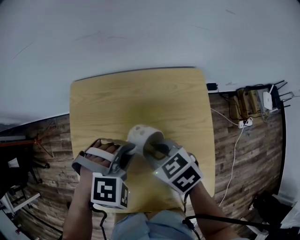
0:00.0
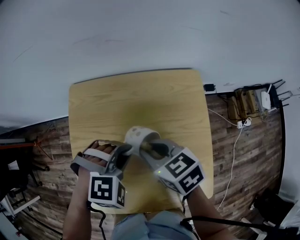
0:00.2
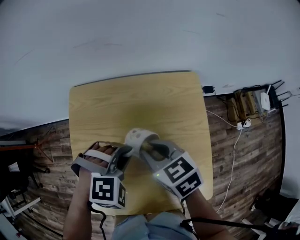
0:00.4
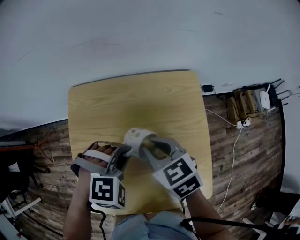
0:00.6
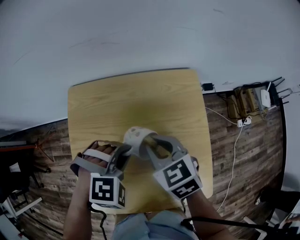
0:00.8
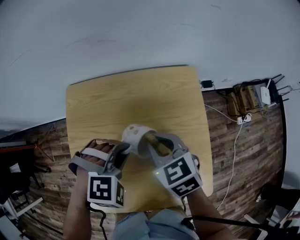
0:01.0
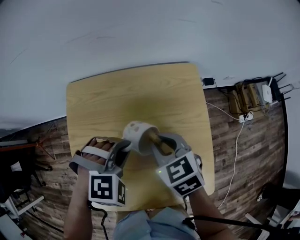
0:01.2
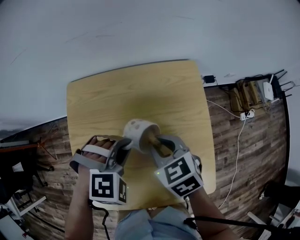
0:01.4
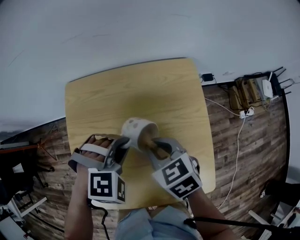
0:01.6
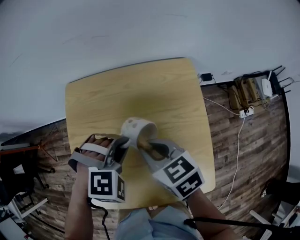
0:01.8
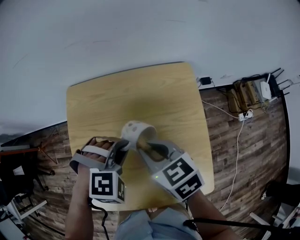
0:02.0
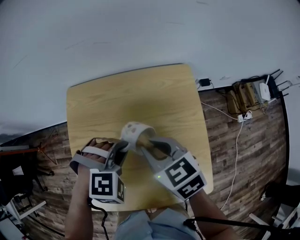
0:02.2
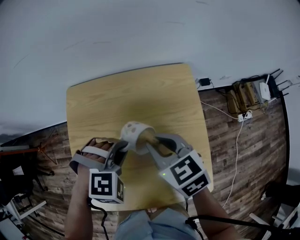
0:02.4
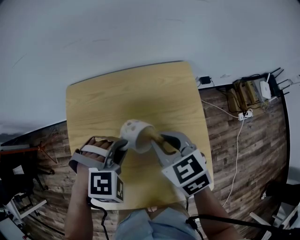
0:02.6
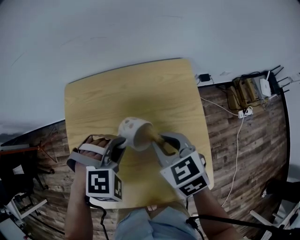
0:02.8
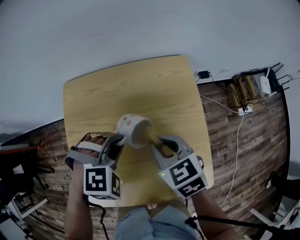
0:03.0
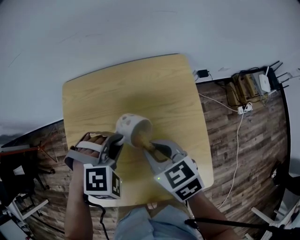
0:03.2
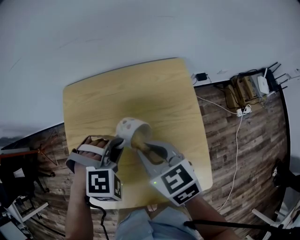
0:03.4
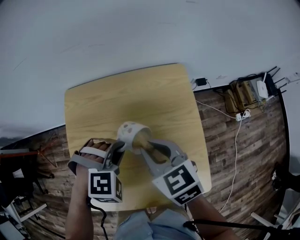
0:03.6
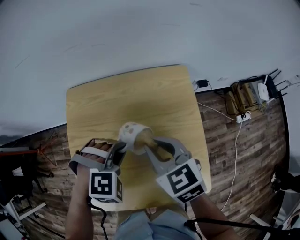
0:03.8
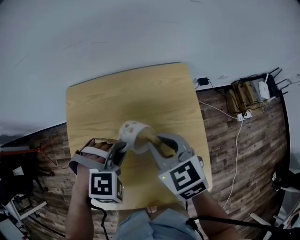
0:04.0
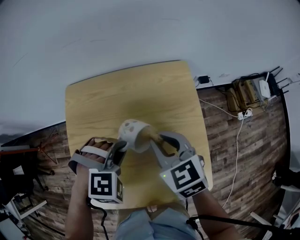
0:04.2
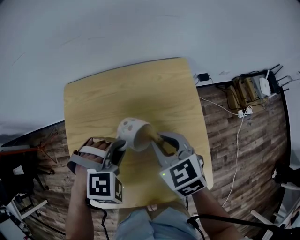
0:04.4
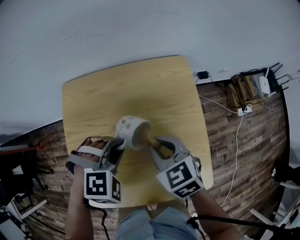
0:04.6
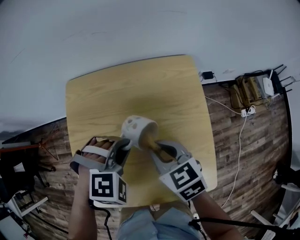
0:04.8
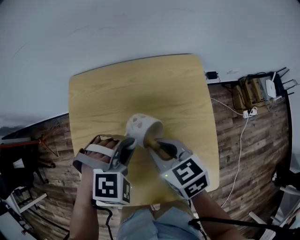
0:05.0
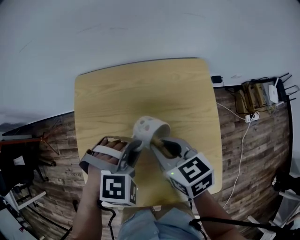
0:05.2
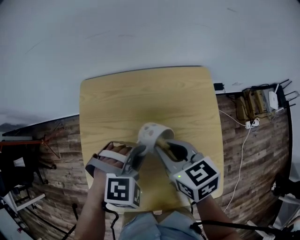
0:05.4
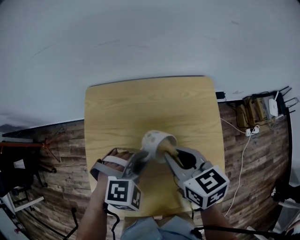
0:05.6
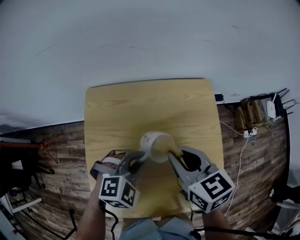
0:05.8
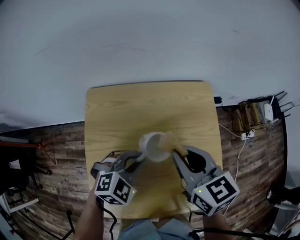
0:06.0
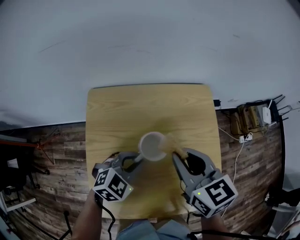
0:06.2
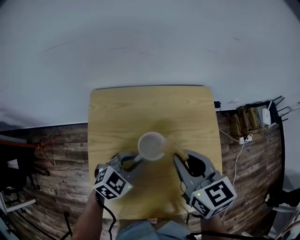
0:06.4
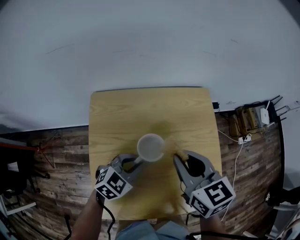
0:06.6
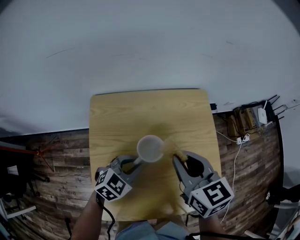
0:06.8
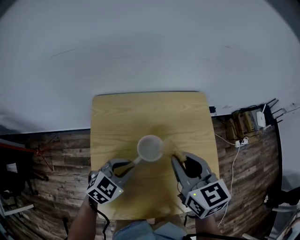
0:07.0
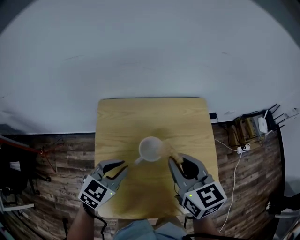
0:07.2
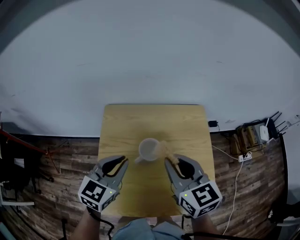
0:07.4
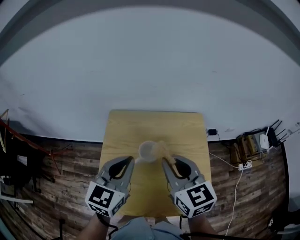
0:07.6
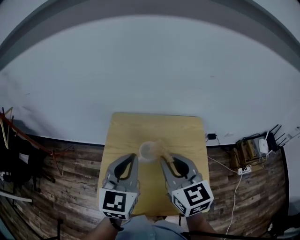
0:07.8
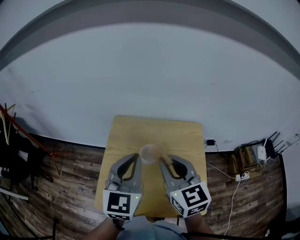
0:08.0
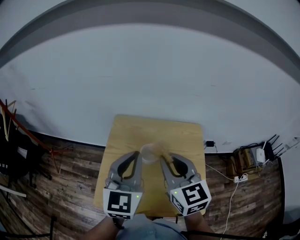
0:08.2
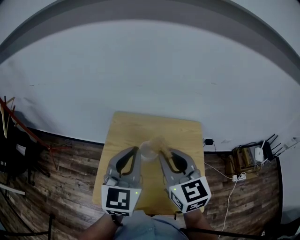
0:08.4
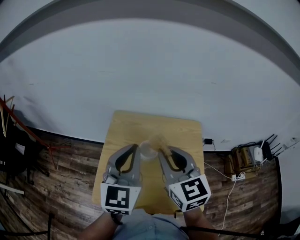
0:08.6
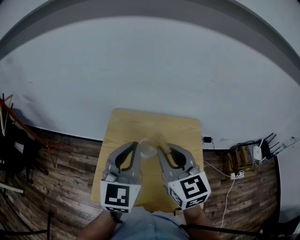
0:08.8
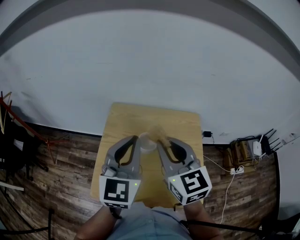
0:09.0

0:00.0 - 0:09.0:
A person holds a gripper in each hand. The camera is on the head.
0:00.0 - 0:01.6: The grippers stay close to where they were, moving slightly.
0:01.6 - 0:03.0: There are only small adjustments of the grippers.
0:03.0 - 0:04.4: The grippers stay close to where they were, moving slightly.
0:04.4 - 0:06.0: The left gripper changes its angle by roughly 30 degrees. The right gripper heads upward, covering some 10 cm.
0:06.0 - 0:07.6: The right gripper shifts roughly 10 cm upward and backward; the left gripper travels upward by some 20 cm, and points its fingers approximately 30 degrees further upward.
0:07.6 - 0:09.0: The left gripper heads upward, covering some 10 cm. Meanwhile the right gripper heads upward, covering approximately 5 cm.

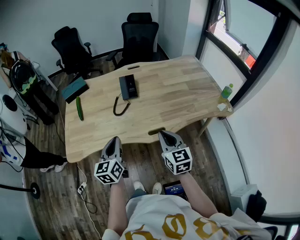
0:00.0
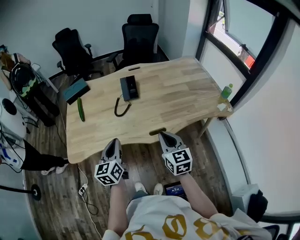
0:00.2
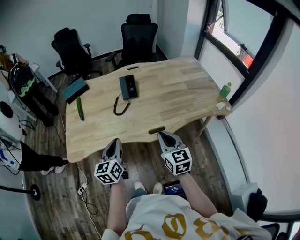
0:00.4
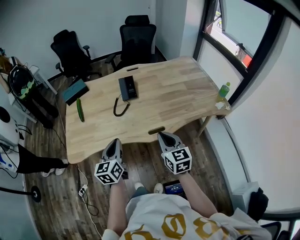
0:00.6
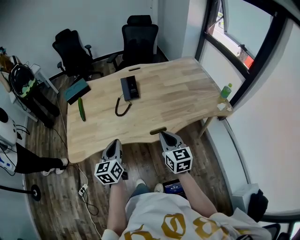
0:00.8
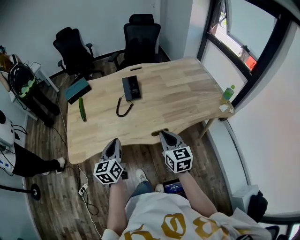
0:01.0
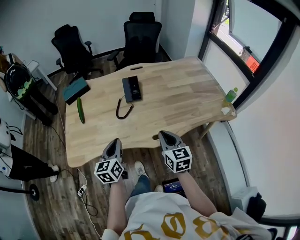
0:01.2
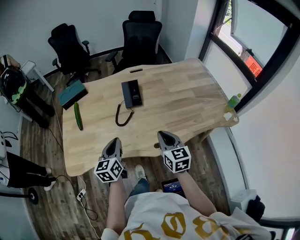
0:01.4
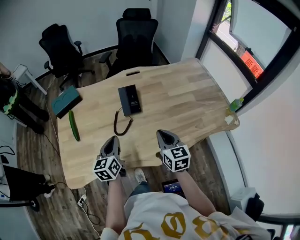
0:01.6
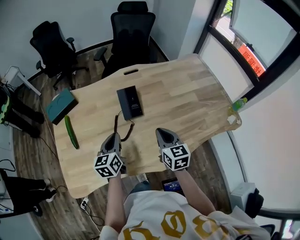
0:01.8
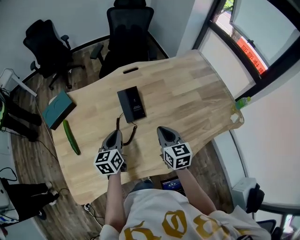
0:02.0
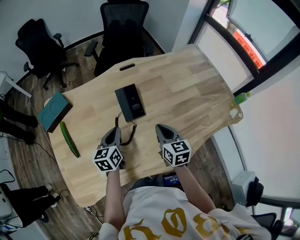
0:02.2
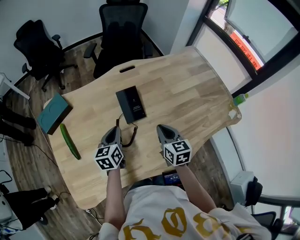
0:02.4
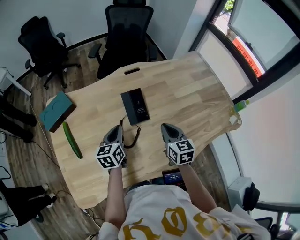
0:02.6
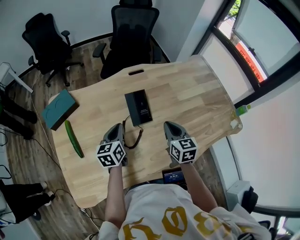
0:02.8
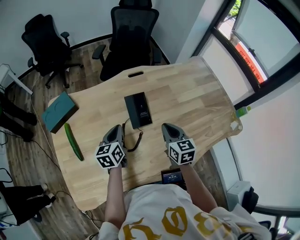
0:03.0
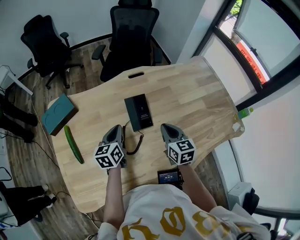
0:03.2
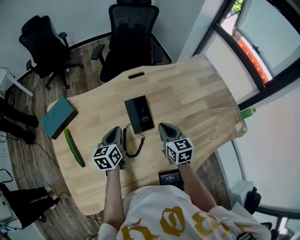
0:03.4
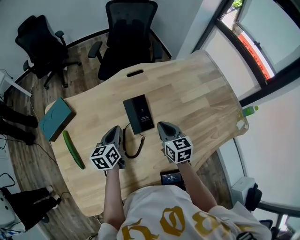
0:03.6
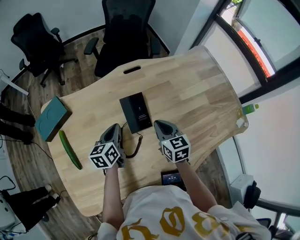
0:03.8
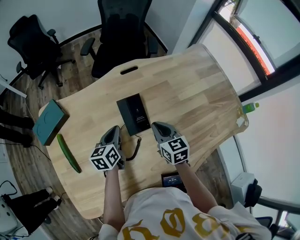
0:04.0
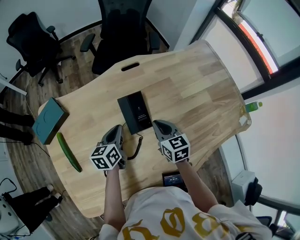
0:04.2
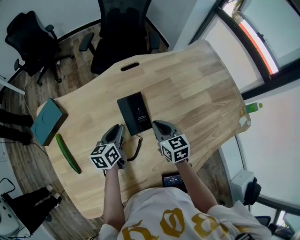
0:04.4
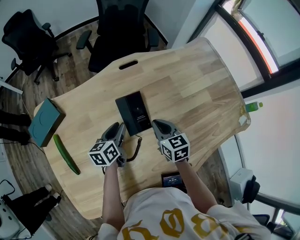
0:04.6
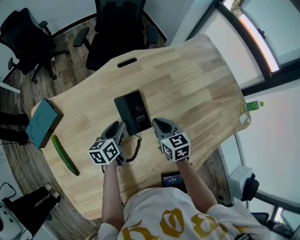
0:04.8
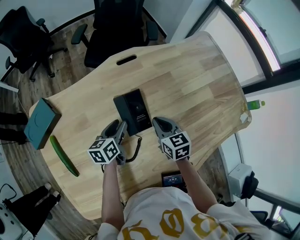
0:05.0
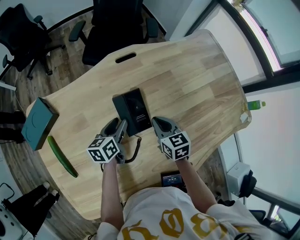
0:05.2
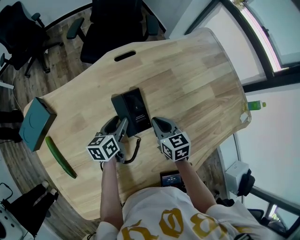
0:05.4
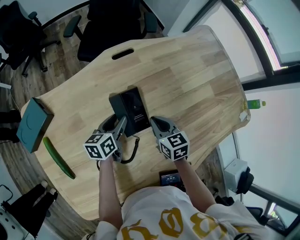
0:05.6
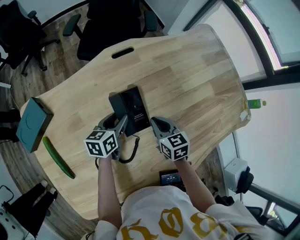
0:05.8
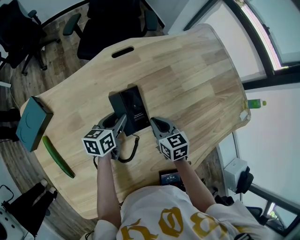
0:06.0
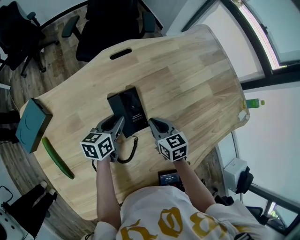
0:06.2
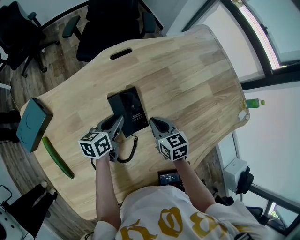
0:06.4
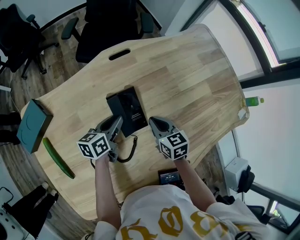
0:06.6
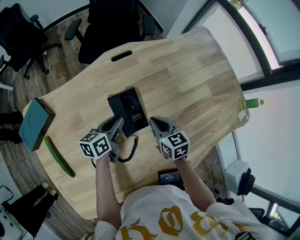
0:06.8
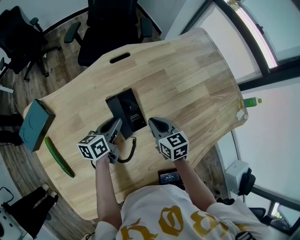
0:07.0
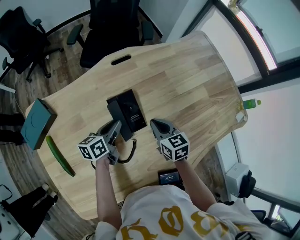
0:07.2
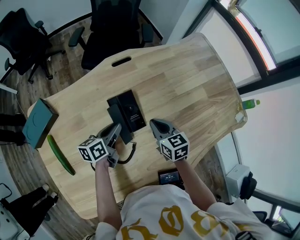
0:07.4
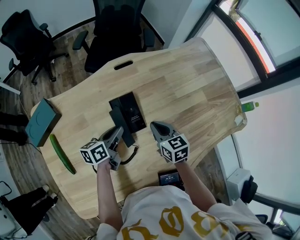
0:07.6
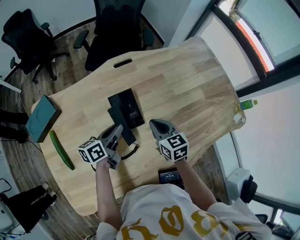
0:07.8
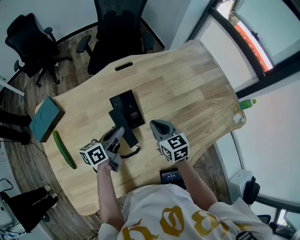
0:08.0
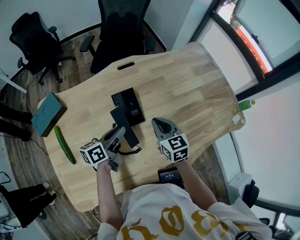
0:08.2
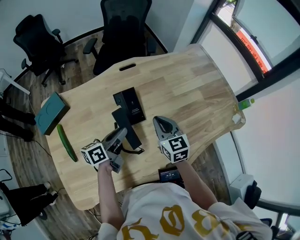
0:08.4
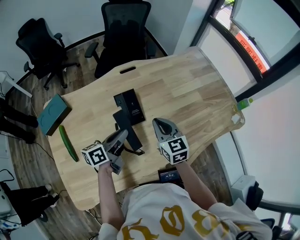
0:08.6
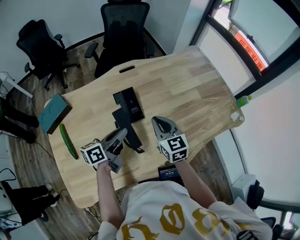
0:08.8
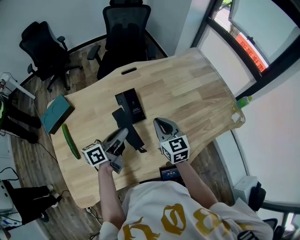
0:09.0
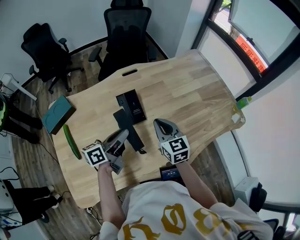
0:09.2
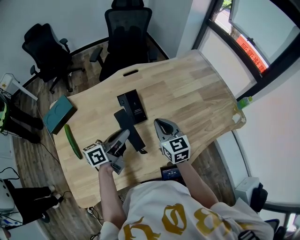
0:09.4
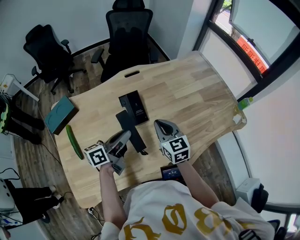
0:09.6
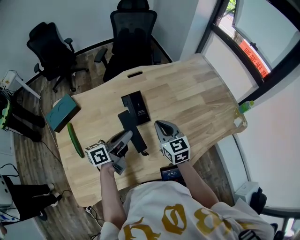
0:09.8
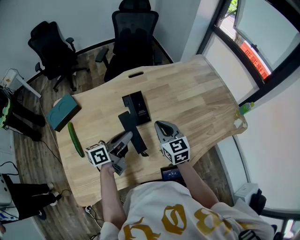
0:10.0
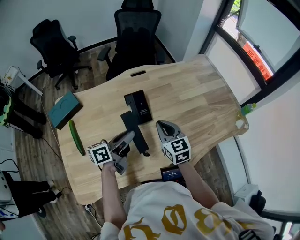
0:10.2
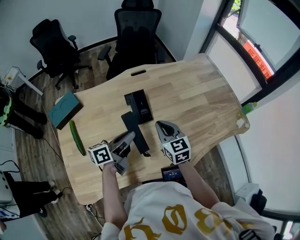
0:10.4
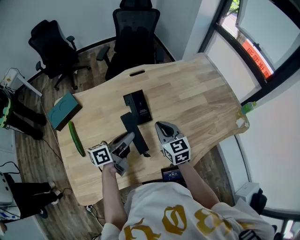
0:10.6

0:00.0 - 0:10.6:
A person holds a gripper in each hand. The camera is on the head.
0:00.0 - 0:01.6: The grippers both shift forward by roughly 15 cm.
0:01.6 - 0:03.0: Both grippers travel together forward, roughly 15 cm.
0:03.0 - 0:04.6: Both grippers travel together downward and forward, approximately 10 cm. The left gripper opens up.
0:04.6 - 0:06.0: The left gripper shifts by approximately 5 cm. The right gripper shifts approximately 5 cm downward.
0:06.0 - 0:07.6: The right gripper heads upward, covering some 5 cm, while the left gripper is displaced backward by roughly 5 cm.
0:07.6 - 0:09.0: Both grippers move upward and backward, about 15 cm.
0:09.0 - 0:10.6: There are only small adjustments of the grippers.

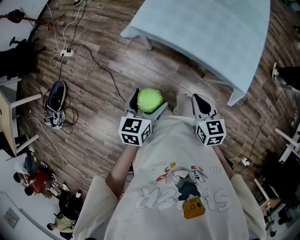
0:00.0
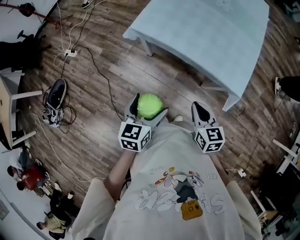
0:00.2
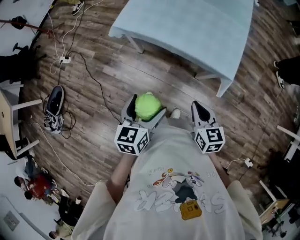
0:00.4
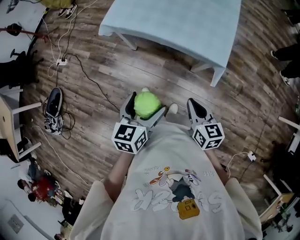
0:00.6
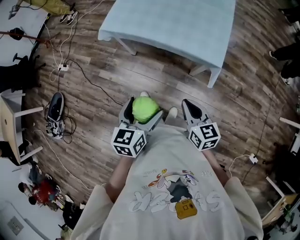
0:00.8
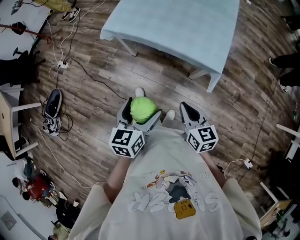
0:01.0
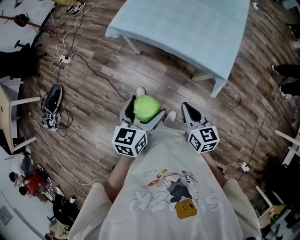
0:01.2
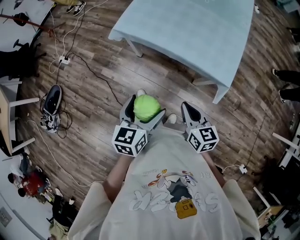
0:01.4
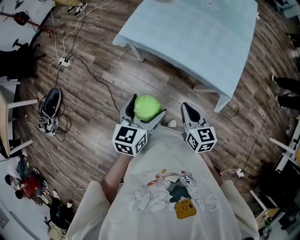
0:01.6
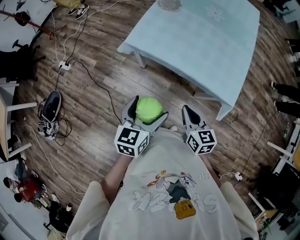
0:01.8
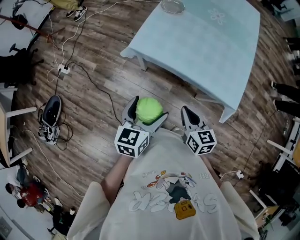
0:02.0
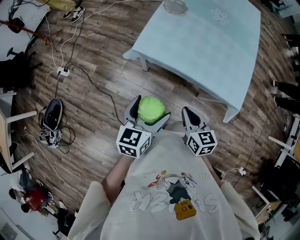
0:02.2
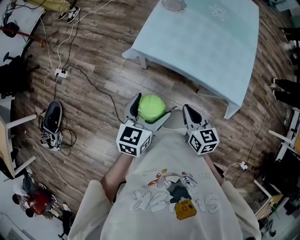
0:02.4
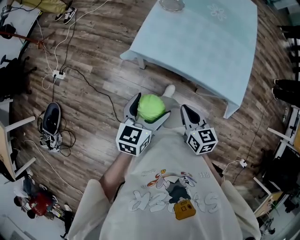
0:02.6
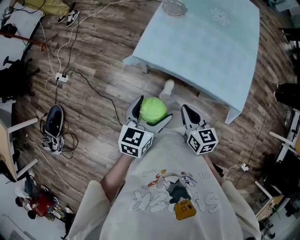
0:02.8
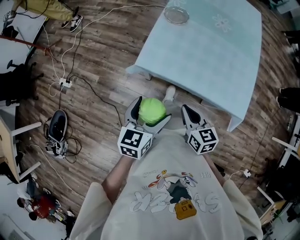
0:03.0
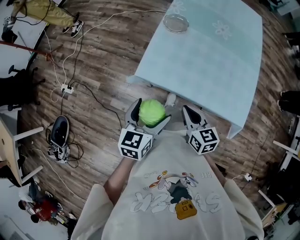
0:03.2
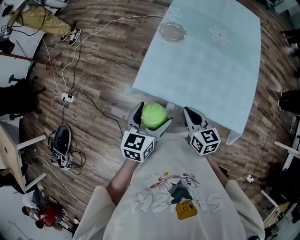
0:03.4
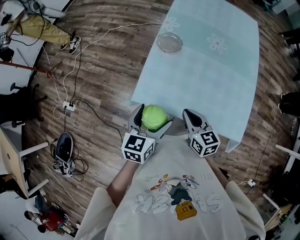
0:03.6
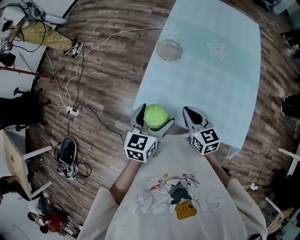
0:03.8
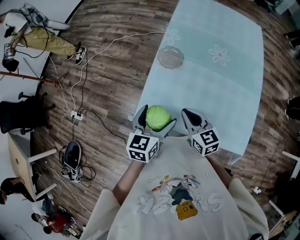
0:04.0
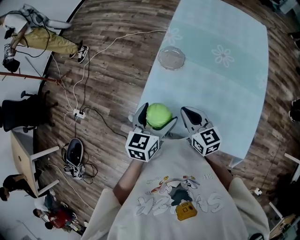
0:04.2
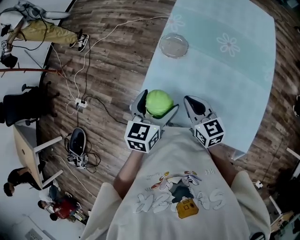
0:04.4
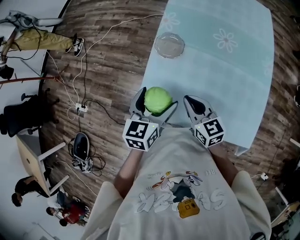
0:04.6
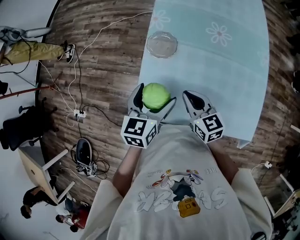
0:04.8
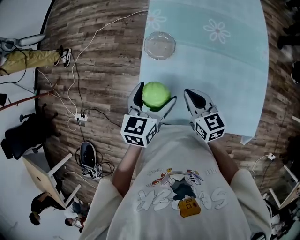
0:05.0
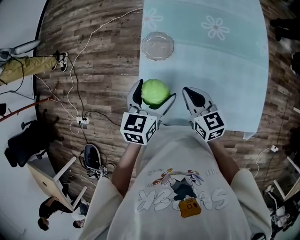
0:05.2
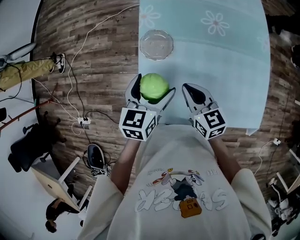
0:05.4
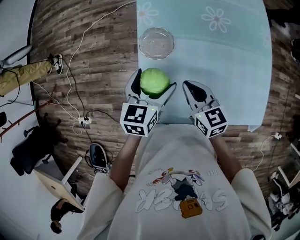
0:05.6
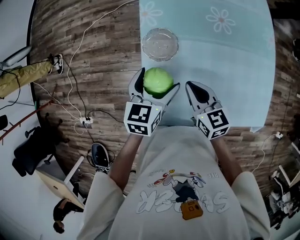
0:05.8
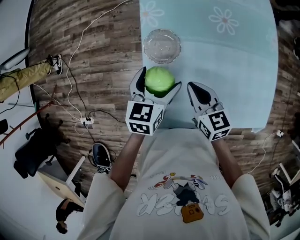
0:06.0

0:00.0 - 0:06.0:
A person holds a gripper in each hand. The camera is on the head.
0:00.0 - 0:01.6: The left gripper heads to the right and upward, covering approximately 10 cm. The right gripper moves to the right, roughly 5 cm, and goes backward and returns, some 15 cm each way.
0:01.6 - 0:03.0: Both grippers travel together forward and to the left, roughly 20 cm.
0:03.0 - 0:04.4: The two grippers go some 30 cm forward.
0:04.4 - 0:06.0: Both grippers travel together forward and downward, approximately 20 cm. The left gripper changes its angle by approximately 20 degrees. Meanwhile the right gripper changes its angle by some 20 degrees.
